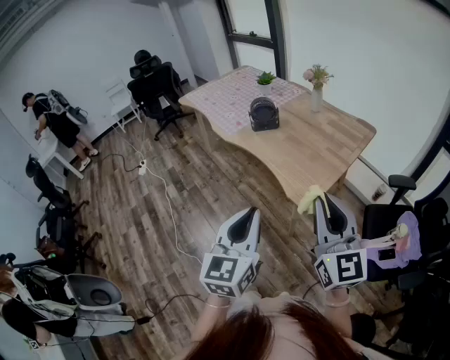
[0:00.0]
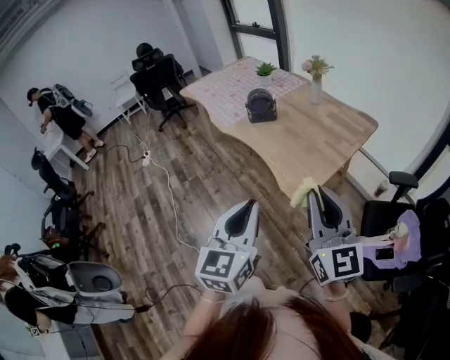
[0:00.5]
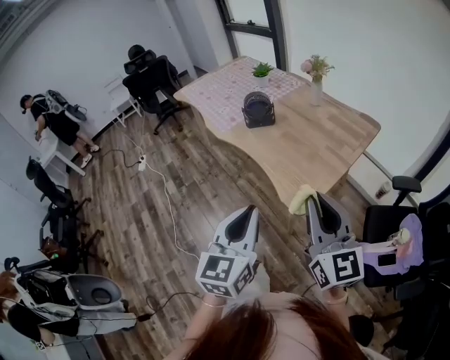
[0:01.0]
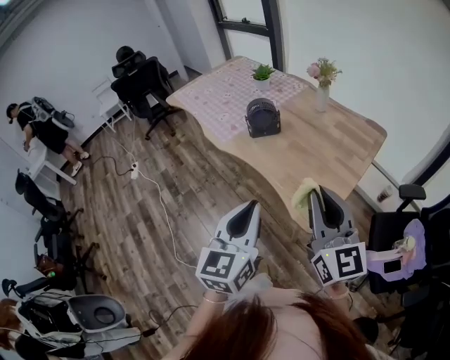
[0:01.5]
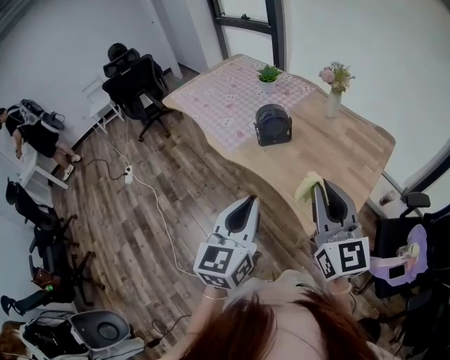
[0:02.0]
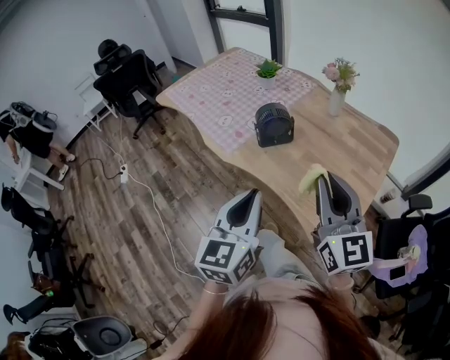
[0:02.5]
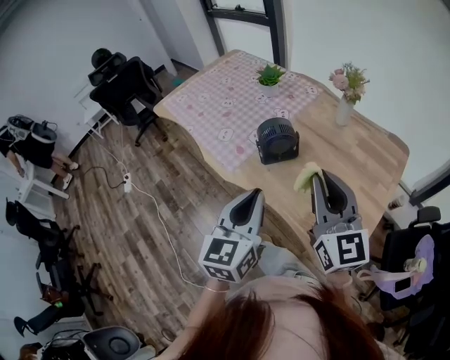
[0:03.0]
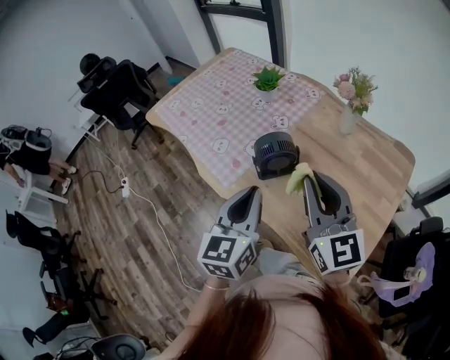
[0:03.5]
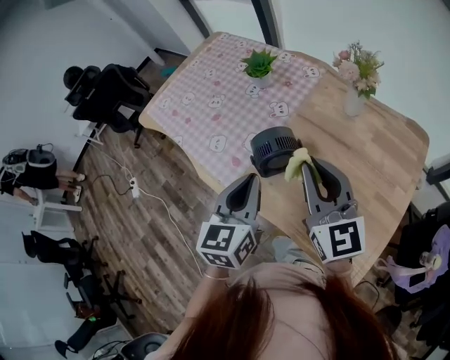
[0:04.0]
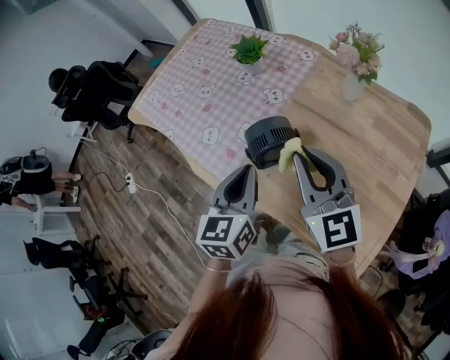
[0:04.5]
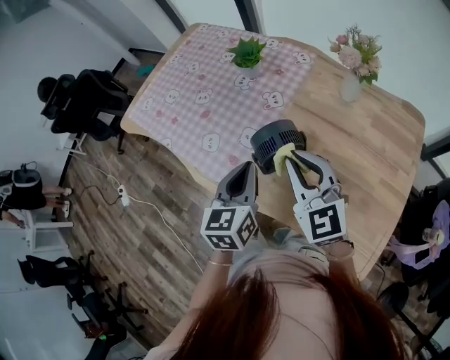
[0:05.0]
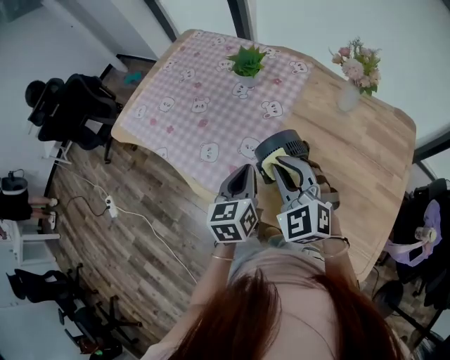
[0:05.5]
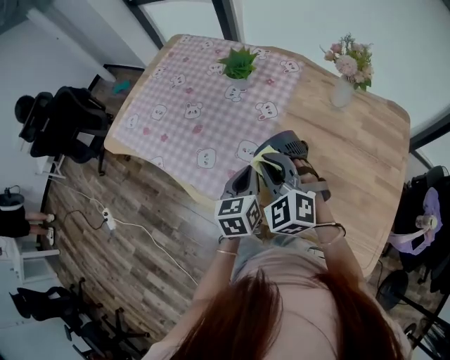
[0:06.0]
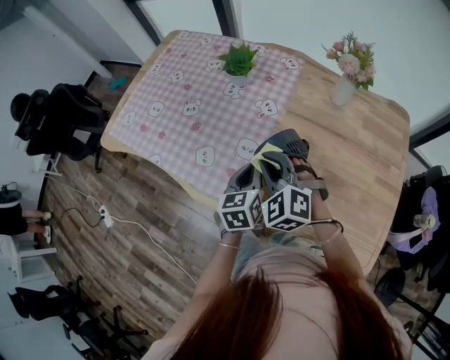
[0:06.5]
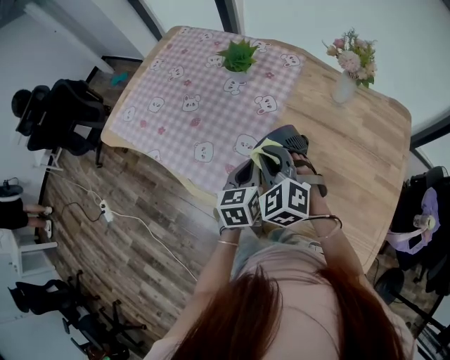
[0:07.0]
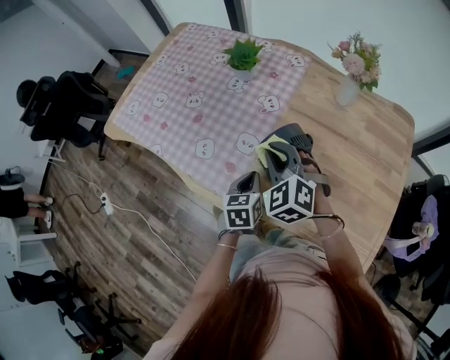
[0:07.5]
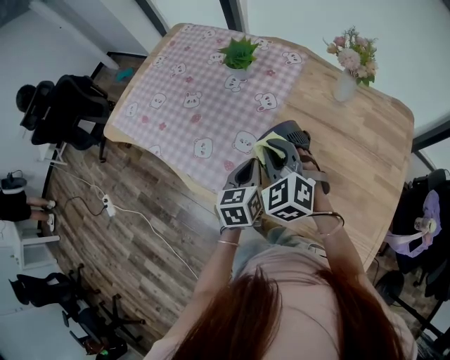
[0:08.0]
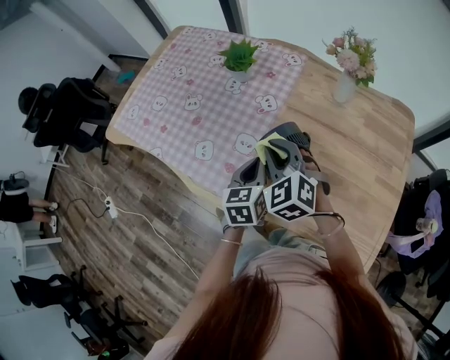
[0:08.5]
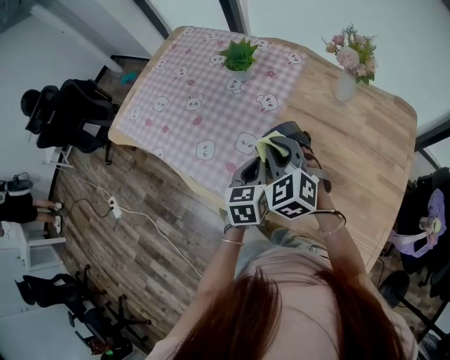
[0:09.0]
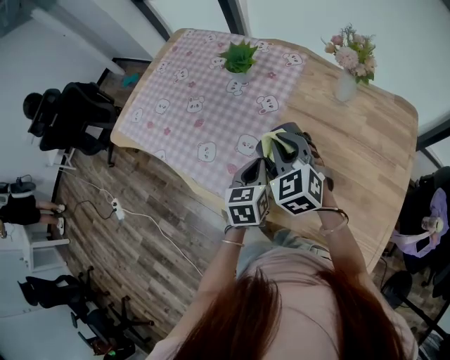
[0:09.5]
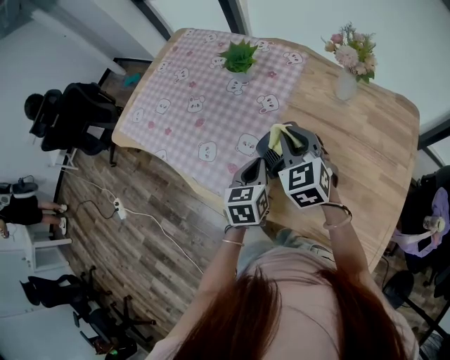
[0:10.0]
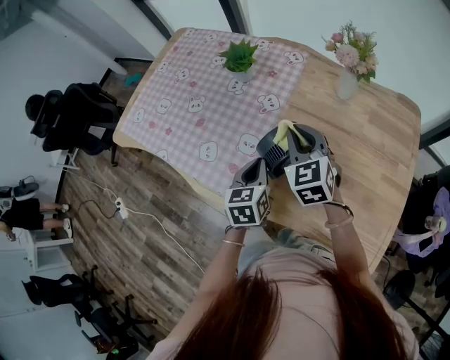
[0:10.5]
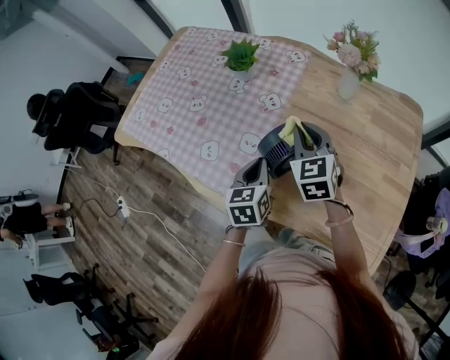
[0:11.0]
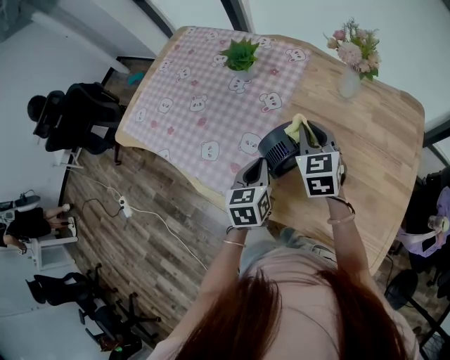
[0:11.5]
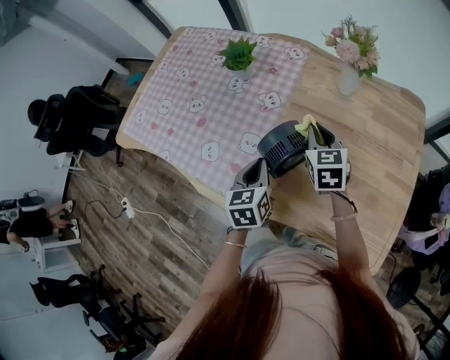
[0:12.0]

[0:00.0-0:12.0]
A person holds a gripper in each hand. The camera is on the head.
0:00.0 to 0:02.0: Both grippers move forward, roughly 30 cm.
0:02.0 to 0:04.0: The grippers both shift forward by approximately 35 cm.
0:04.0 to 0:06.0: The left gripper travels downward, forward and to the left by about 20 cm, while the right gripper goes roughly 20 cm to the left, downward and forward, and tilts its fingers approximately 30 degrees downward.
0:06.0 to 0:08.0: The left gripper moves some 10 cm downward and comes back.
0:08.0 to 0:10.0: The right gripper travels to the right by about 5 cm.
0:10.0 to 0:12.0: The right gripper travels to the right and downward by roughly 10 cm, and swivels some 30 degrees.

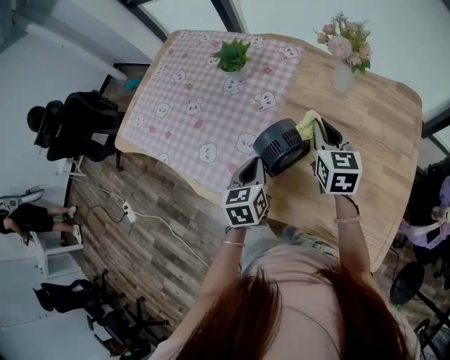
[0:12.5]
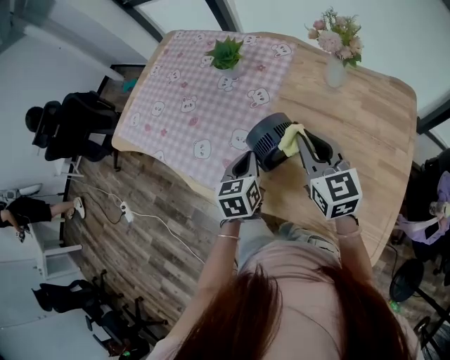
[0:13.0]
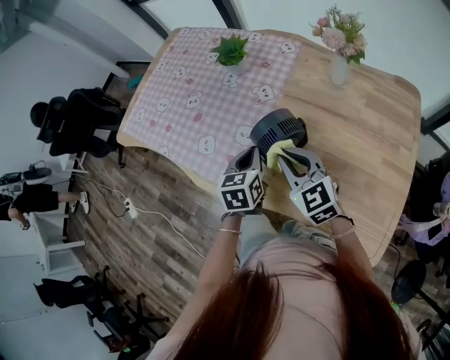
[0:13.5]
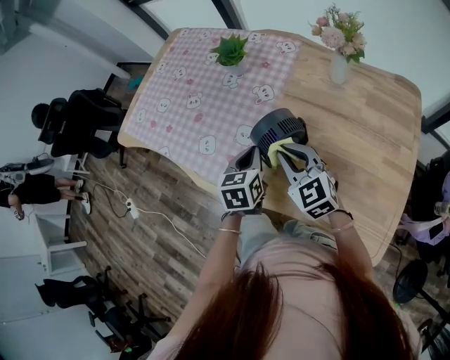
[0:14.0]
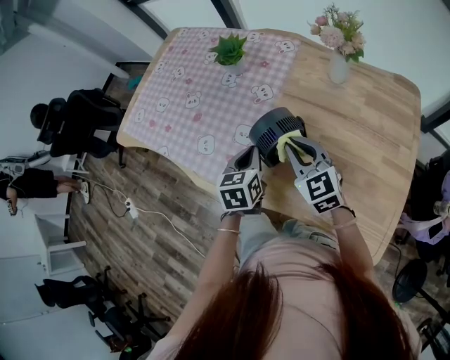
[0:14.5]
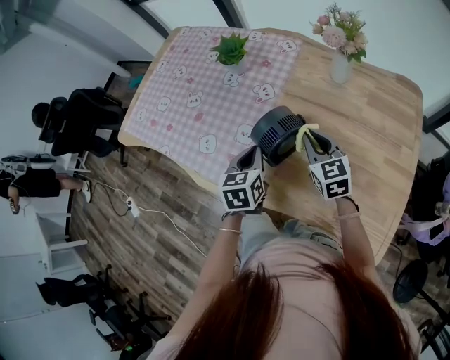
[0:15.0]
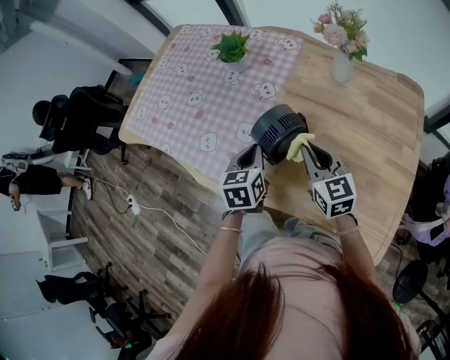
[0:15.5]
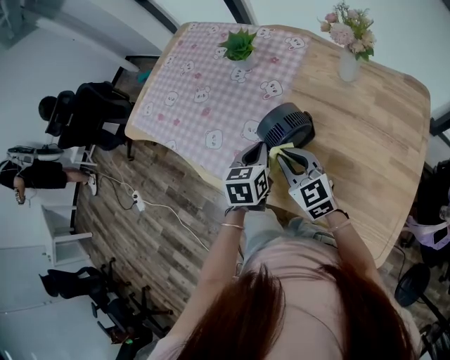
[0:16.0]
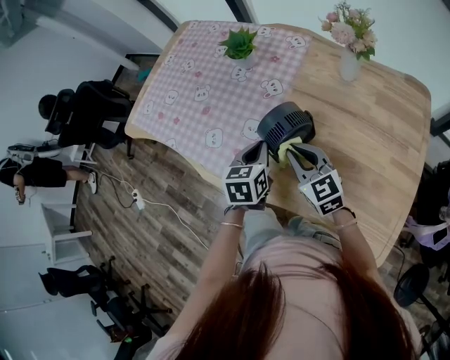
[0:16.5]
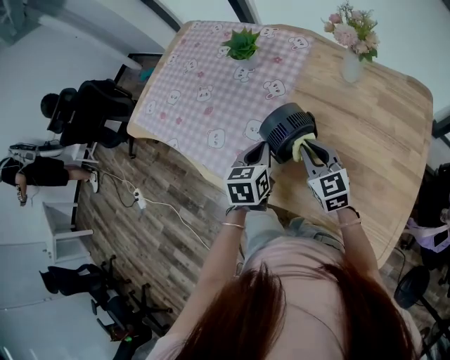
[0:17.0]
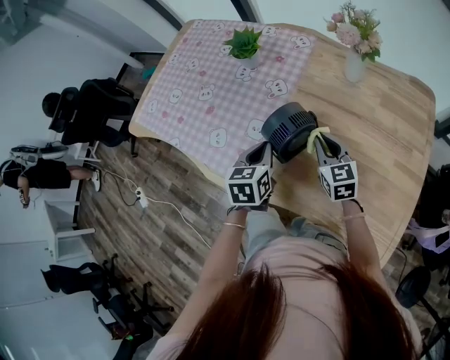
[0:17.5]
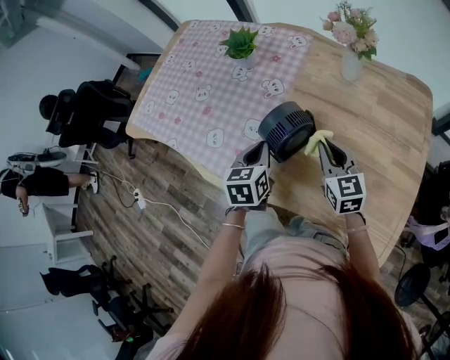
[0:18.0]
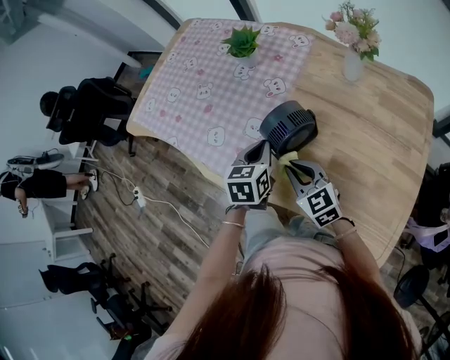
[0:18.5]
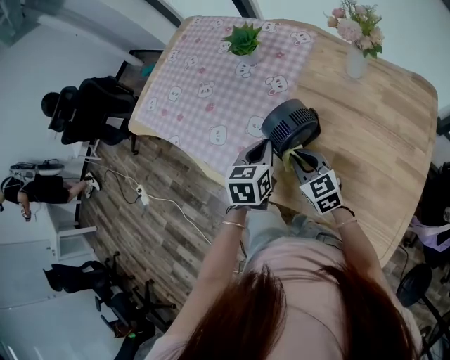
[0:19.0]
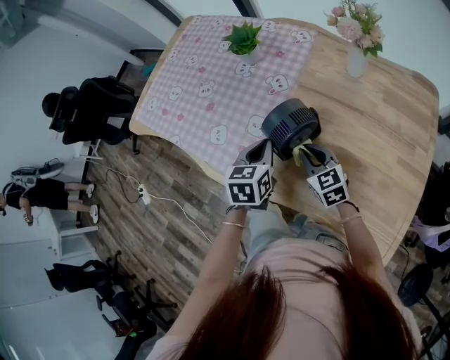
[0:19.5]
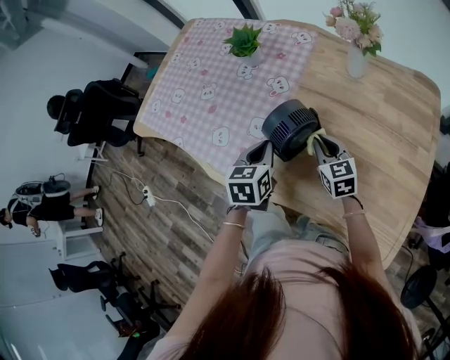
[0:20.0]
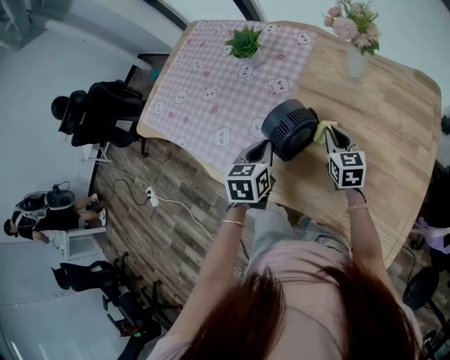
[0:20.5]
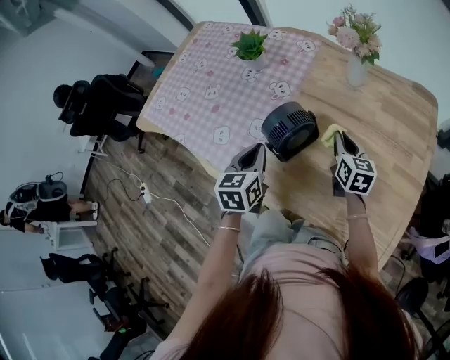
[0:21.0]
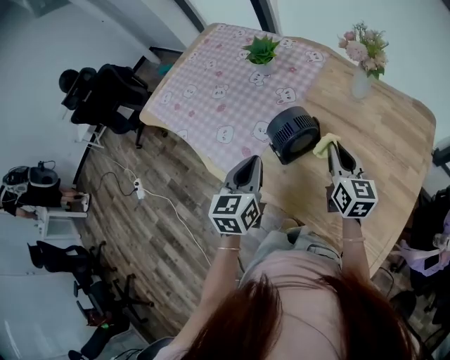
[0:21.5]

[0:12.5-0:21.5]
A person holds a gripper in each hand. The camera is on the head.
0:12.5 to 0:14.5: The right gripper shifts some 10 cm to the left and backward, and turns by about 30 degrees.
0:14.5 to 0:17.0: The right gripper swings left and right, approximately 10 cm each way, with 2 reversals.
0:17.0 to 0:19.5: The right gripper goes left and right, approximately 10 cm each way, reversing 2 times.
0:19.5 to 0:21.5: The left gripper heads upward and backward, covering roughly 10 cm. The right gripper is displaced upward and to the right by about 15 cm, and turns by some 30 degrees.

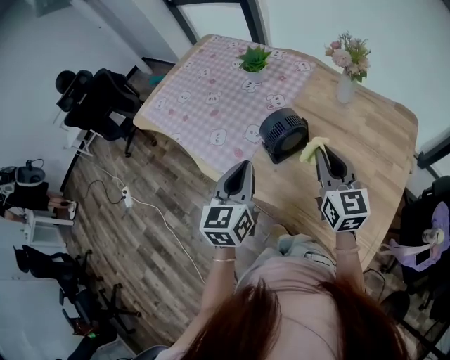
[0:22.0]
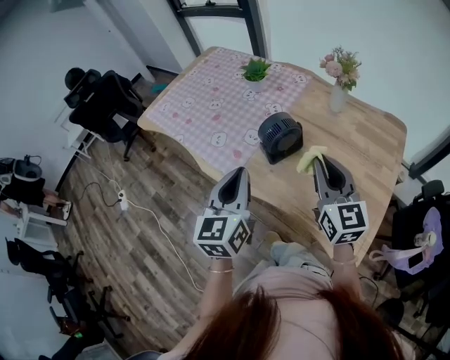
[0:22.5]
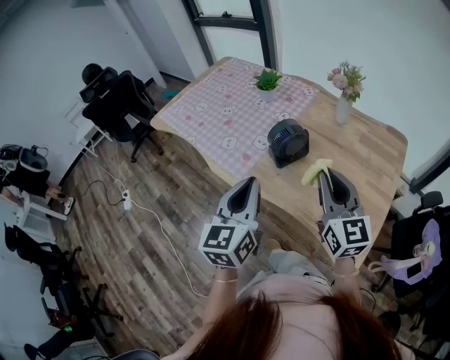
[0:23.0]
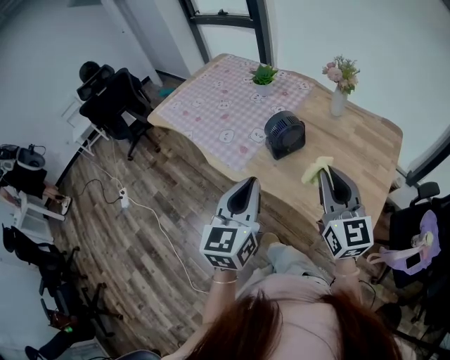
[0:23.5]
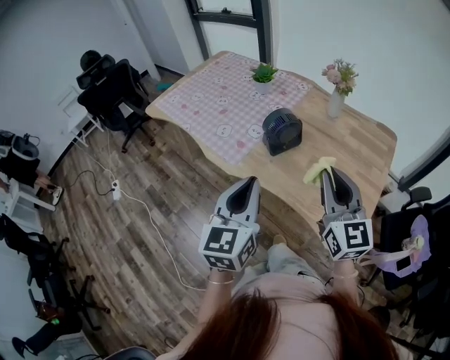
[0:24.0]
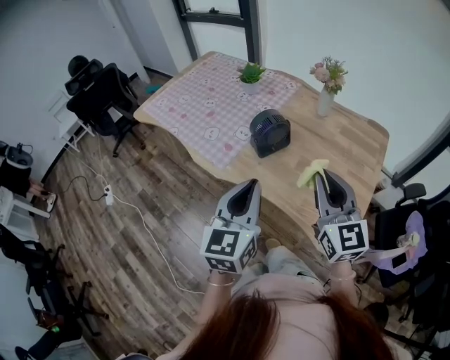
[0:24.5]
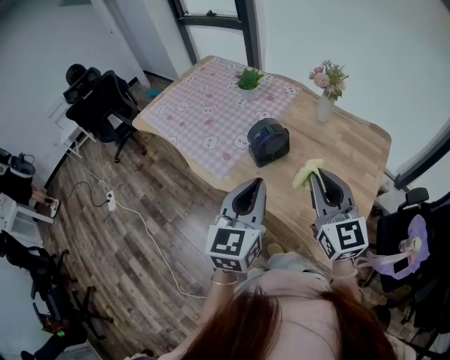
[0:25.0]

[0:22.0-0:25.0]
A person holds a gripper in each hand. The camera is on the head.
0:22.0 to 0:23.5: Both grippers travel together backward and upward, roughly 20 cm.
0:23.5 to 0:25.0: The left gripper is displaced to the right by about 5 cm.

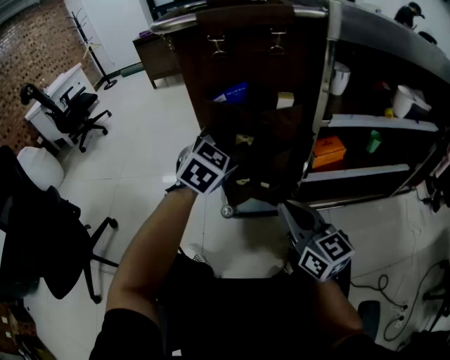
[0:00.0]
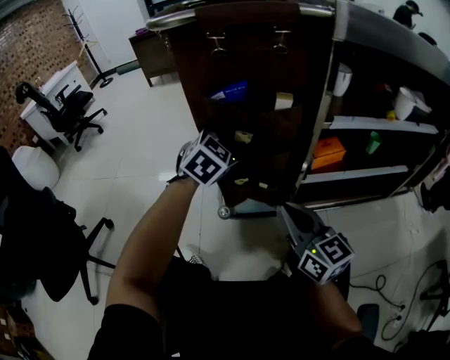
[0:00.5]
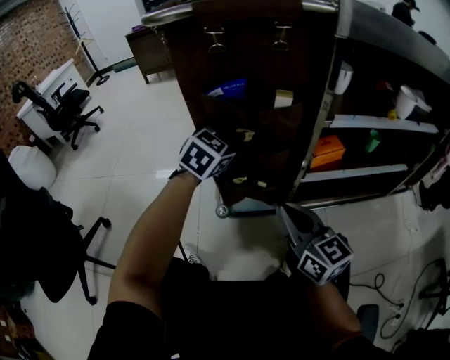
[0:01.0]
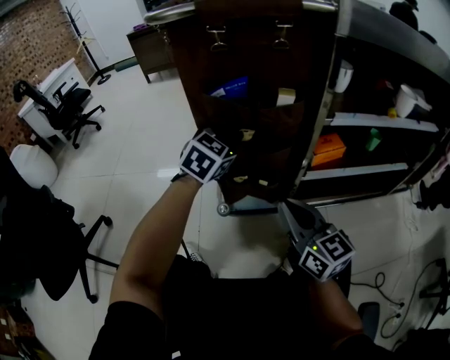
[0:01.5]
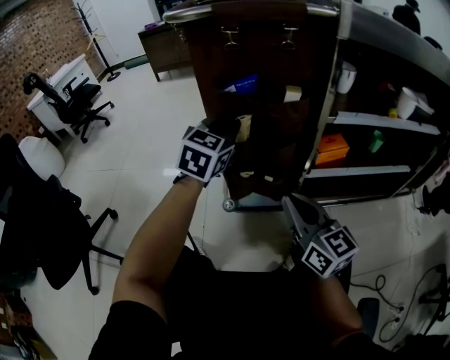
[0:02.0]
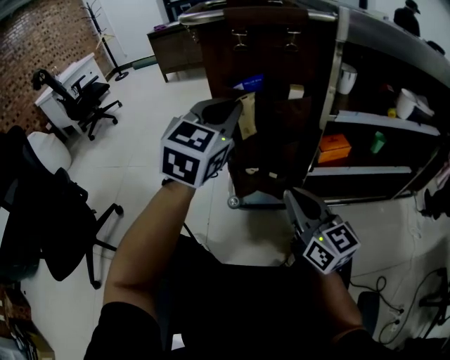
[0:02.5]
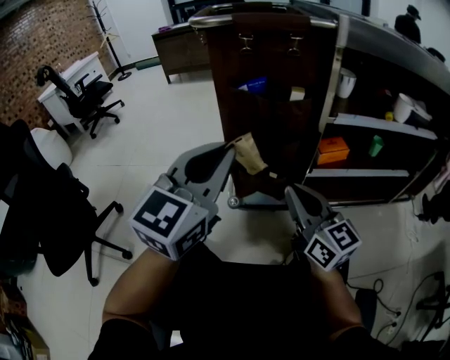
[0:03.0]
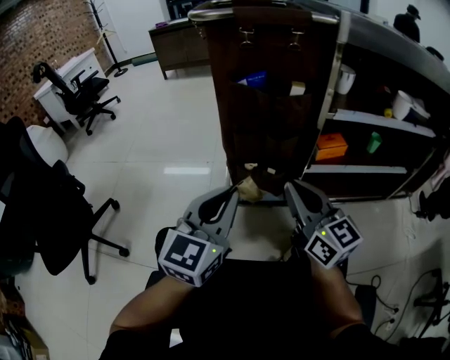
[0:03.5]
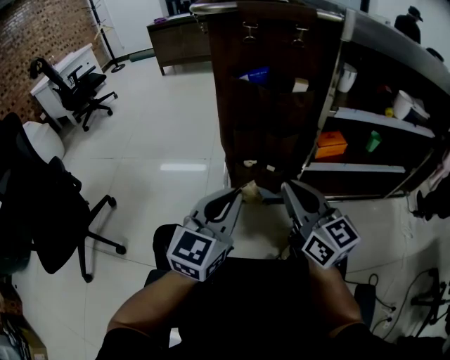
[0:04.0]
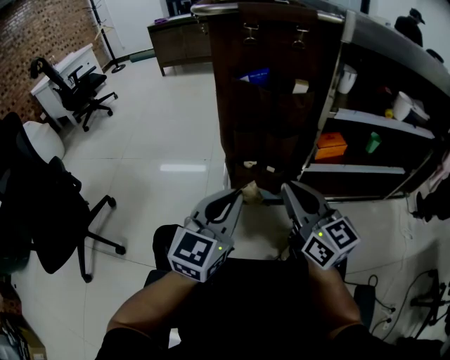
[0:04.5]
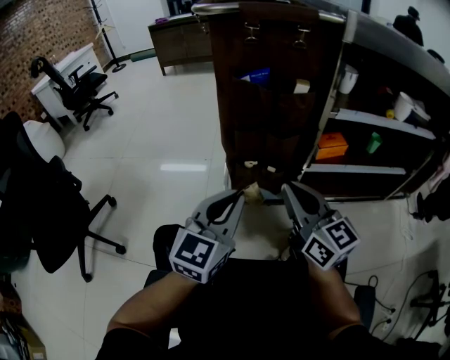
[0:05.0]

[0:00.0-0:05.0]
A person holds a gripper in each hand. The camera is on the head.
0:00.0 to 0:02.5: The left gripper travels upward and backward by roughly 15 cm, rotates approximately 20 degrees, and closes up.
0:02.5 to 0:05.0: The left gripper goes roughly 20 cm backward and downward.
